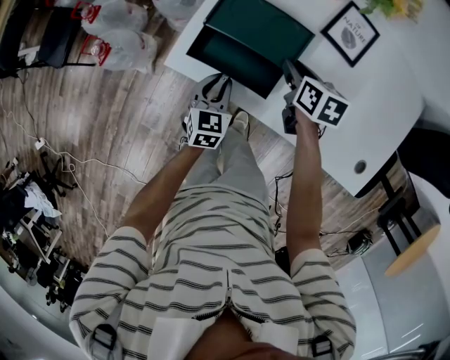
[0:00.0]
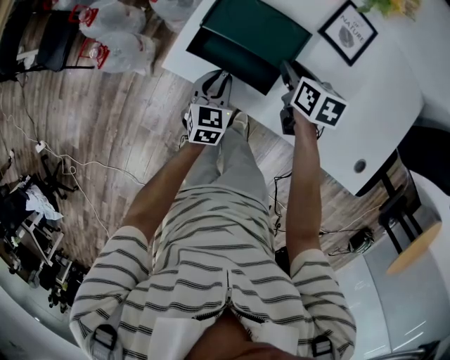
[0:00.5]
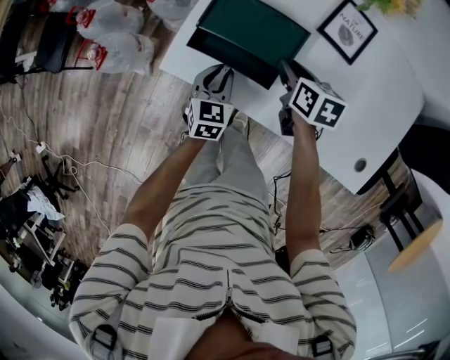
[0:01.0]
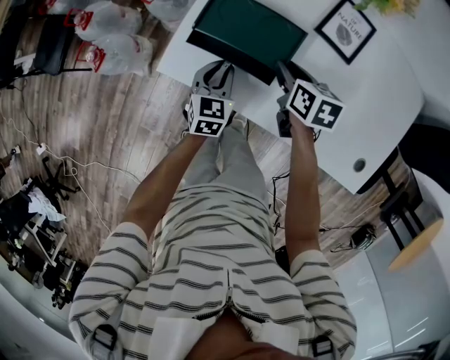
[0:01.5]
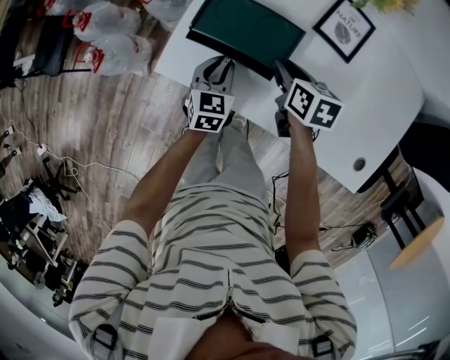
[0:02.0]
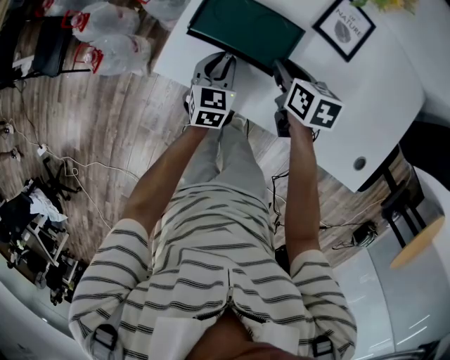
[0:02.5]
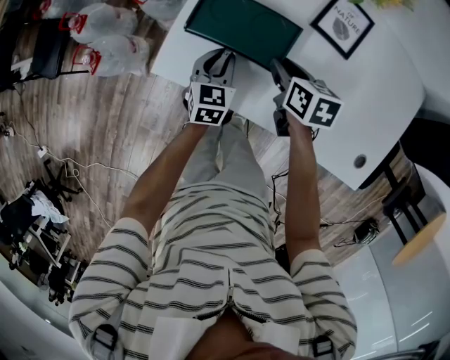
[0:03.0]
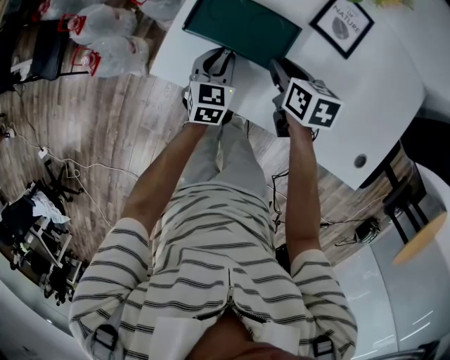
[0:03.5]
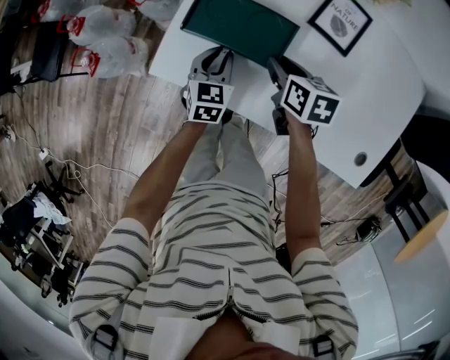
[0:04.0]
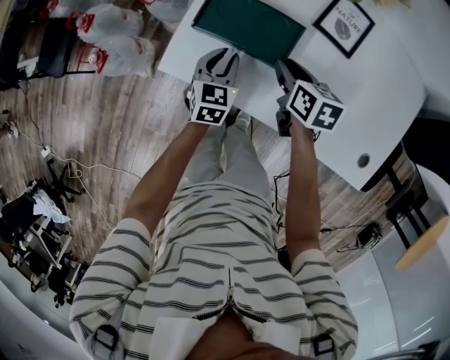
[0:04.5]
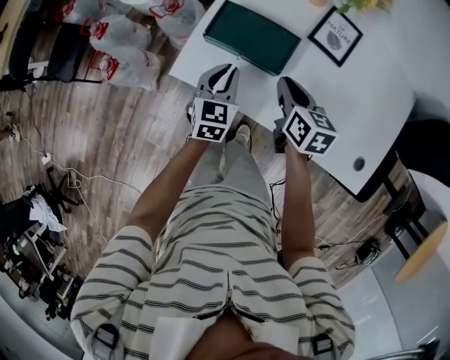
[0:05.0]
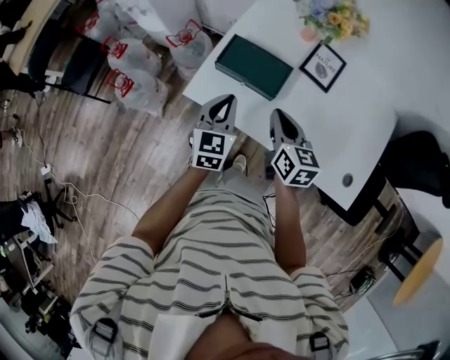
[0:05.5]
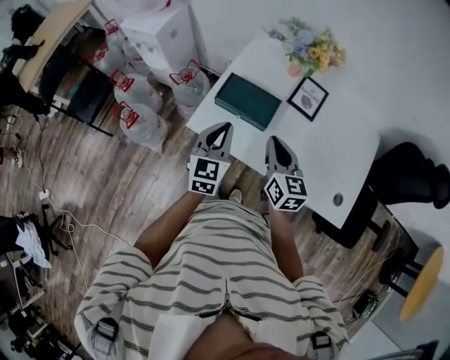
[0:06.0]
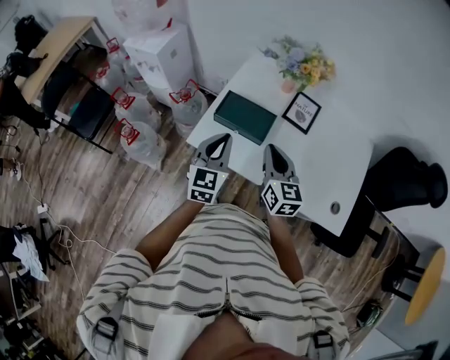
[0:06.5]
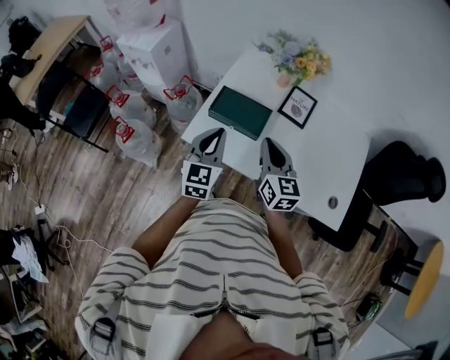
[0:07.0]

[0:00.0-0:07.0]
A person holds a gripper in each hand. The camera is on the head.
0:00.0 to 0:02.0: The left gripper goes roughly 5 cm forward.
0:02.0 to 0:03.5: The grippers make only small movements.
0:03.5 to 0:05.0: The left gripper shifts approximately 10 cm upward. The right gripper is displaced upward and backward by some 10 cm, and closes its fingers.
0:05.0 to 0:07.0: The left gripper moves upward, about 20 cm, and turns by roughly 20 degrees, while the right gripper heads upward and backward, covering approximately 20 cm, and rotates roughly 30 degrees.

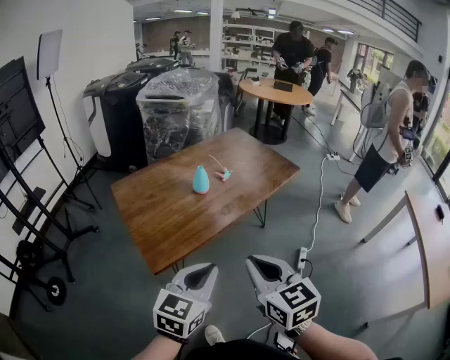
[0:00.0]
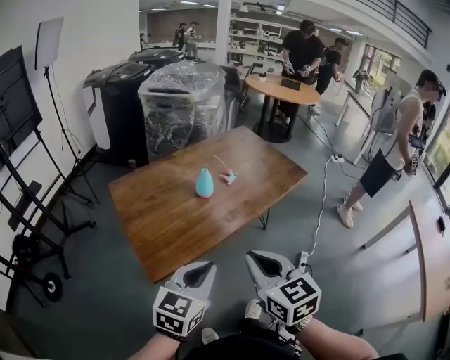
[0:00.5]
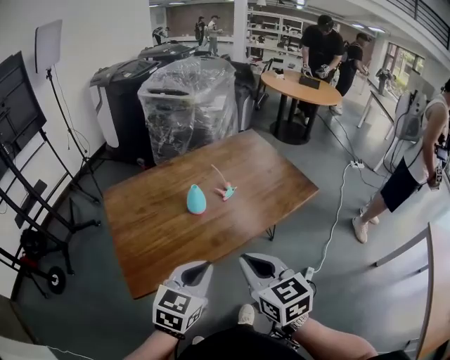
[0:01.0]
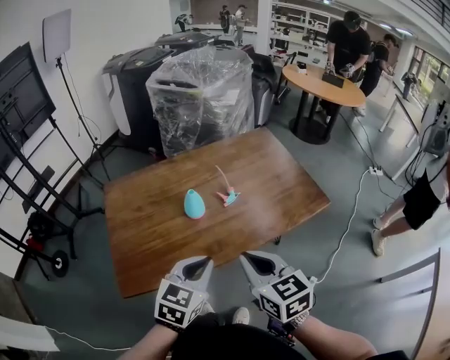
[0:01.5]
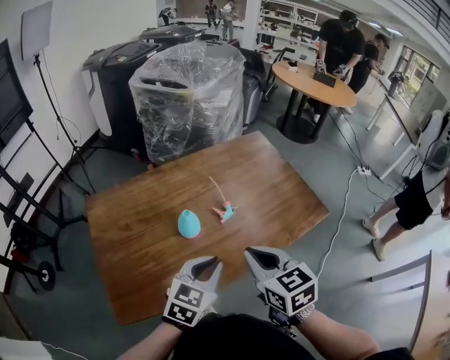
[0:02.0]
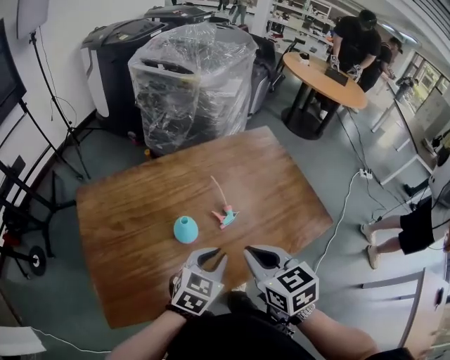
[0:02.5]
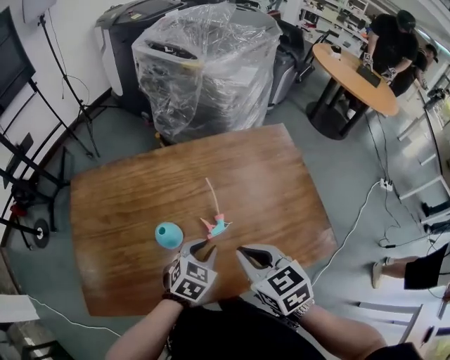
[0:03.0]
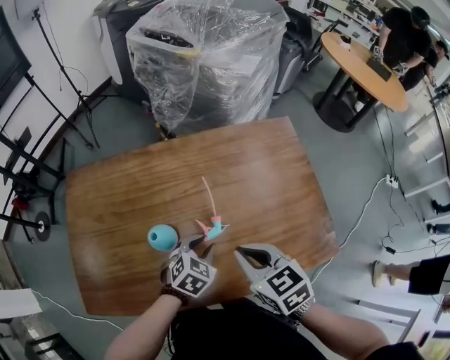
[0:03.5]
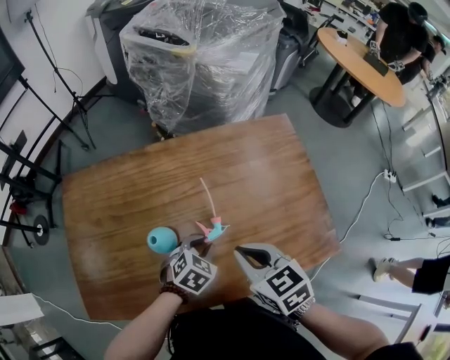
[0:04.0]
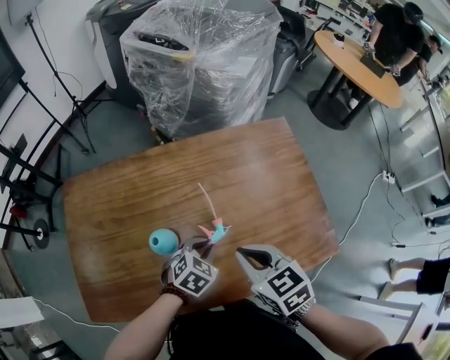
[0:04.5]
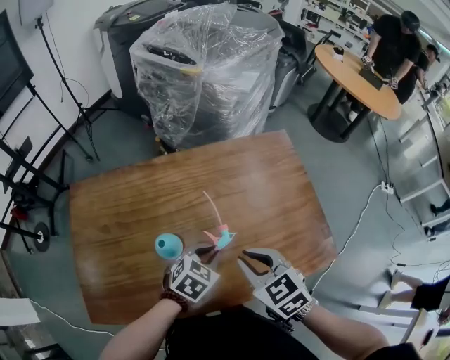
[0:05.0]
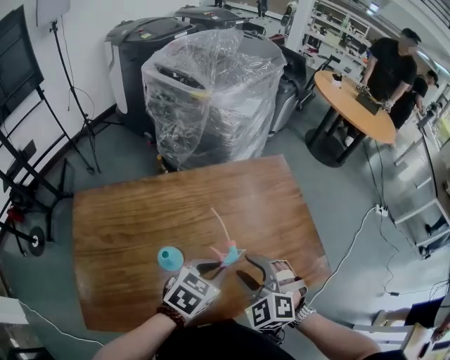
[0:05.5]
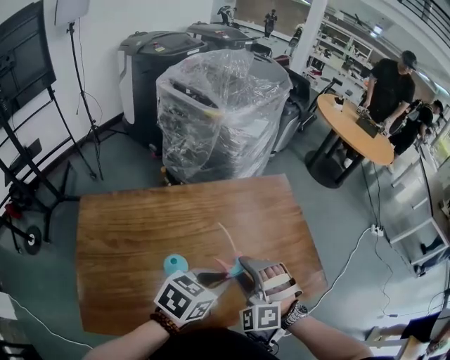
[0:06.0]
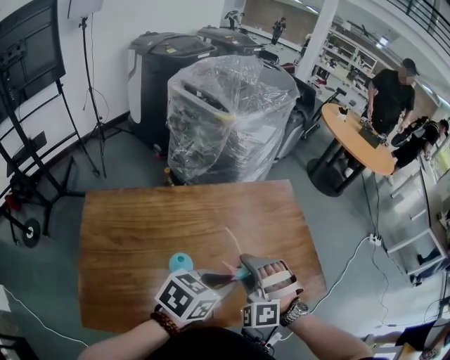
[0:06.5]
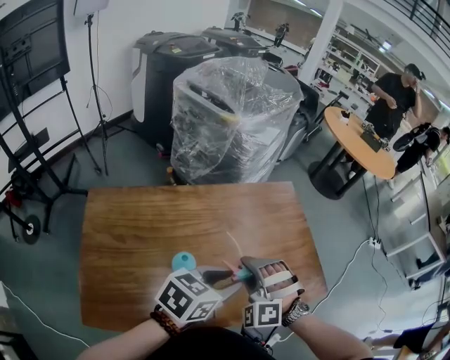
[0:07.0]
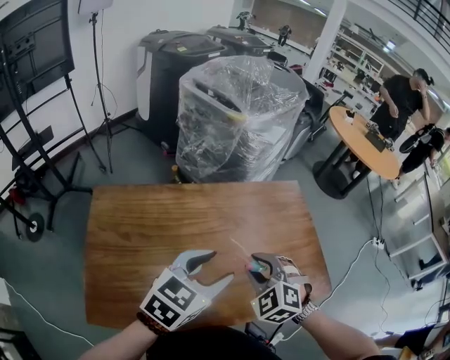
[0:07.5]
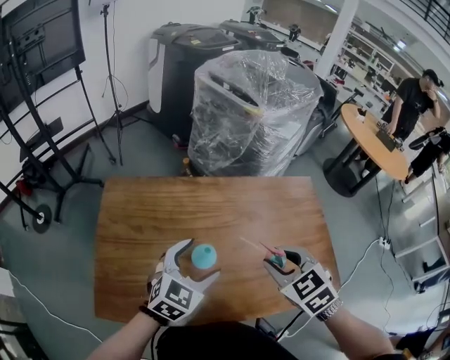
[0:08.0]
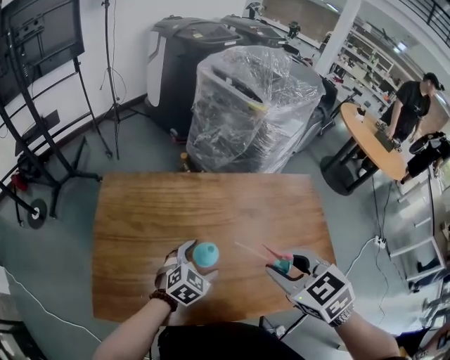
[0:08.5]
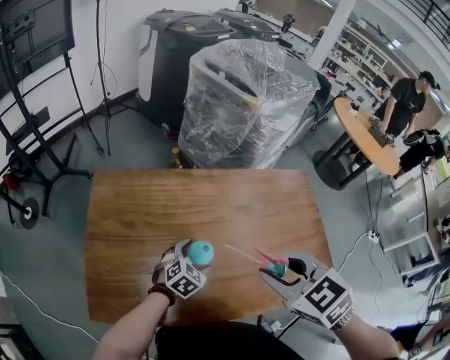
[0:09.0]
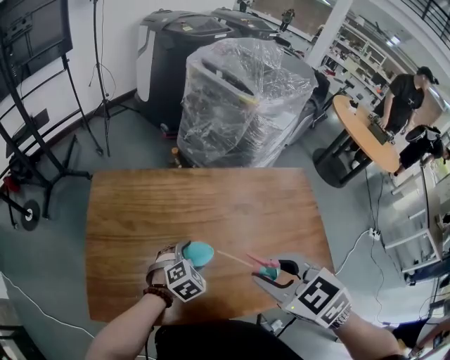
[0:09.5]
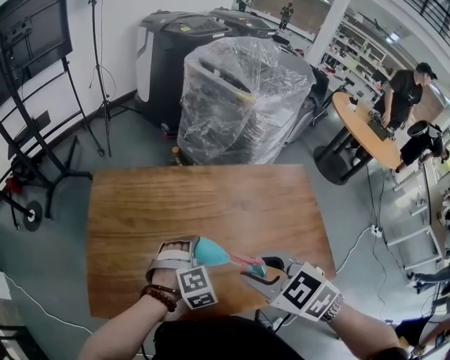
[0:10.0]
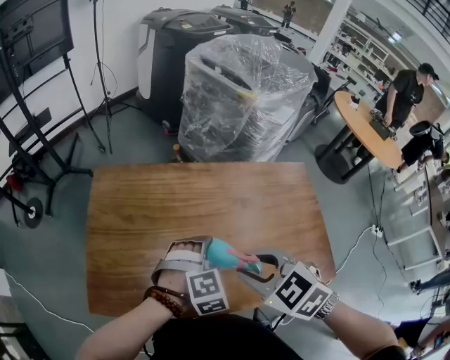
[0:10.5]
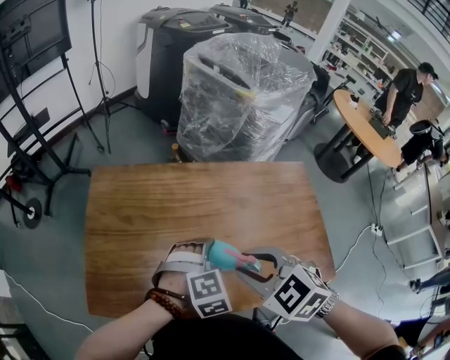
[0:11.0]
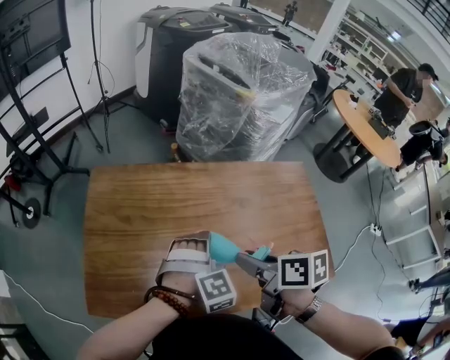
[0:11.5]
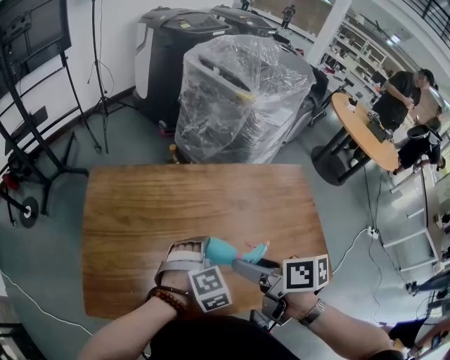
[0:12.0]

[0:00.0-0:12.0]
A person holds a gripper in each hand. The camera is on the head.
0:00.0 to 0:02.0: Both grippers travel together forward, some 35 cm.
0:02.0 to 0:04.0: The left gripper heads downward and forward, covering approximately 25 cm, and rotates approximately 30 degrees. Meanwhile the right gripper is displaced forward and downward by roughly 15 cm, and changes its angle by about 20 degrees.
0:04.0 to 0:06.0: The left gripper travels upward by some 20 cm, and changes its angle by some 30 degrees, while the right gripper rotates around the line of its fingers by roughly 70 degrees, counterclockwise from behind, and opens up.
0:06.0 to 0:08.0: The left gripper reaches some 5 cm upward, then returns, turns by roughly 30 degrees, and opens up; the right gripper is displaced upward by about 5 cm, and rotates around the line of its fingers by approximately 40 degrees, clockwise from behind.
0:08.0 to 0:10.0: The left gripper shifts some 10 cm downward, and swivels about 50 degrees; the right gripper heads to the left, covering some 5 cm.
0:10.0 to 0:12.0: The right gripper ends up about 5 cm from where it was, rolls clockwise, seen from behind, by roughly 70 degrees, and opens its fingers.

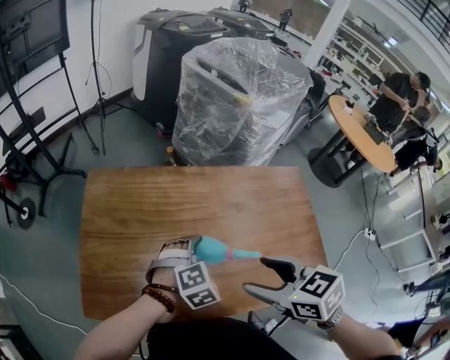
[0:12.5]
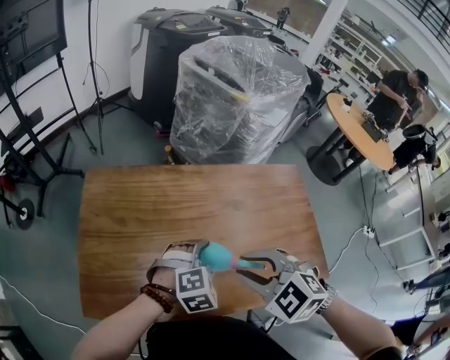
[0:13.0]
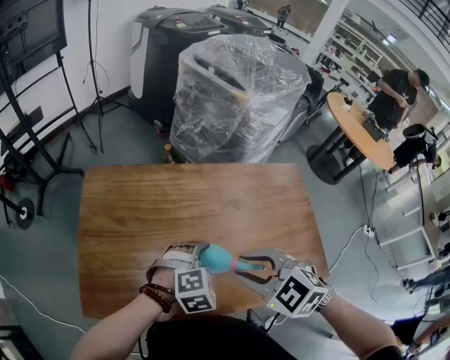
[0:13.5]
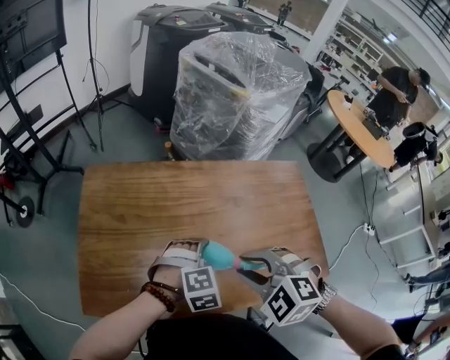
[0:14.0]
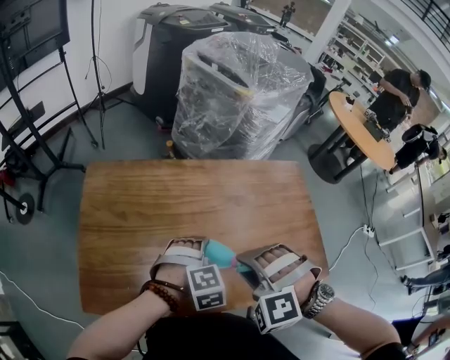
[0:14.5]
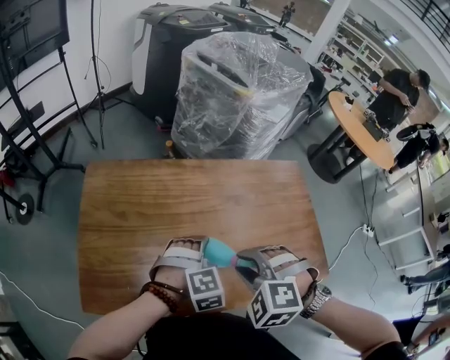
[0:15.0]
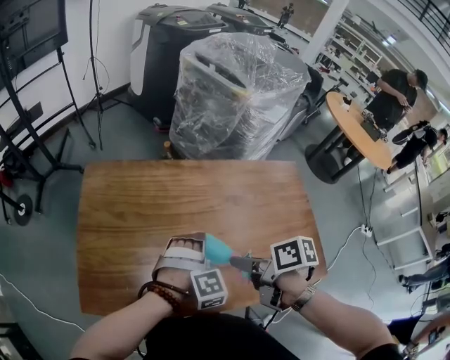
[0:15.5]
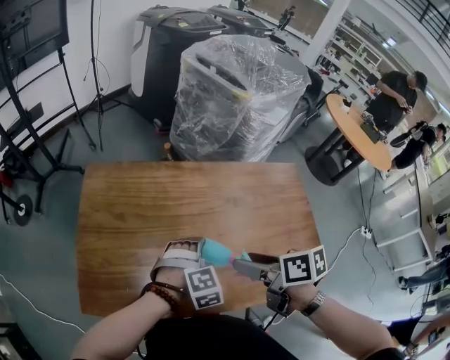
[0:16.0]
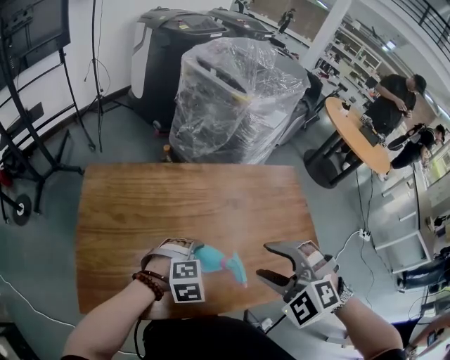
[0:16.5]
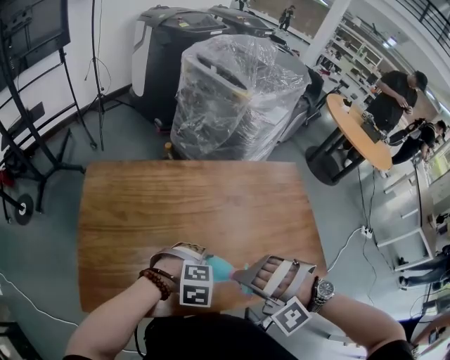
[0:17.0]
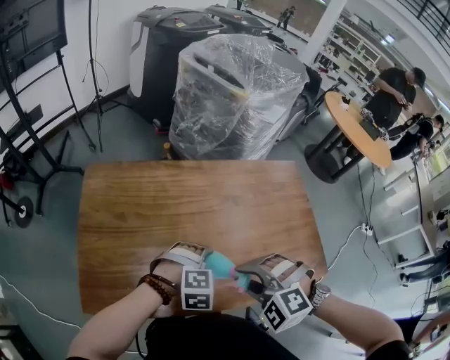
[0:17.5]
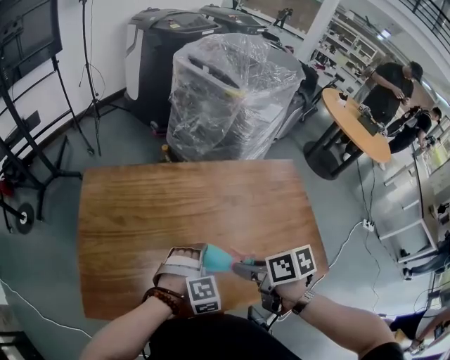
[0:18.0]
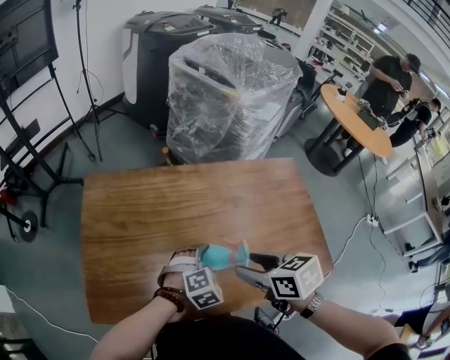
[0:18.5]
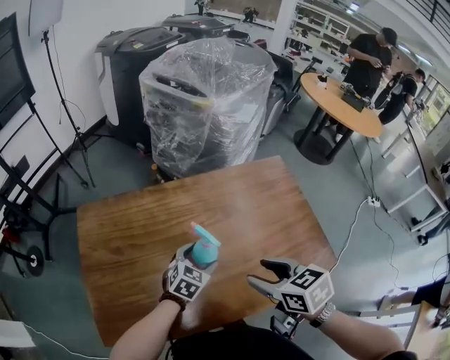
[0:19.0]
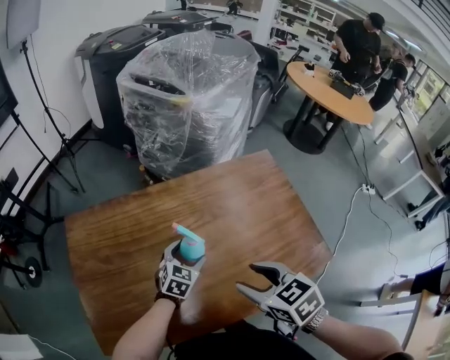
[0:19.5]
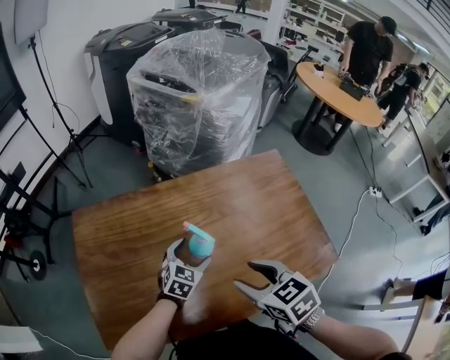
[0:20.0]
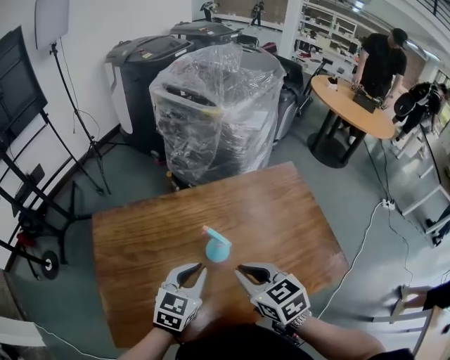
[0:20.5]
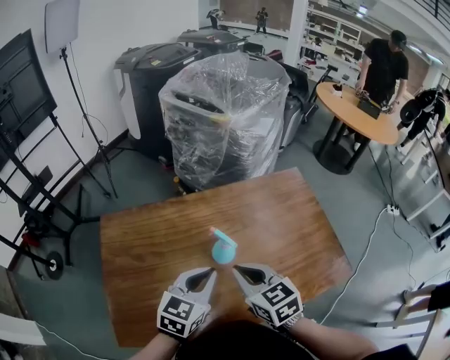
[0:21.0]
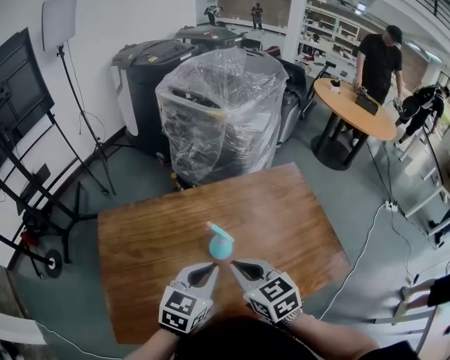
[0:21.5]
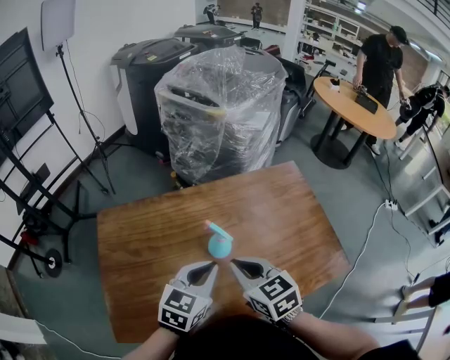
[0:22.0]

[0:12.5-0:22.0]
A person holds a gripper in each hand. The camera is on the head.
0:12.5 to 0:14.5: The right gripper moves approximately 5 cm, rolls counterclockwise, seen from behind, by about 80 degrees, and closes its fingers.
0:14.5 to 0:16.5: The right gripper heads upward, covering about 5 cm, swivels some 20 degrees, and opens.
0:16.5 to 0:18.0: The right gripper goes some 10 cm downward, rolls clockwise, seen from behind, by some 100 degrees, and closes up.
0:18.0 to 0:20.0: The left gripper is displaced forward by approximately 10 cm, and rotates around the line of its fingers by roughly 50 degrees, counterclockwise from behind, while the right gripper changes its angle by some 40 degrees.
0:20.0 to 0:22.0: The right gripper heads to the left, covering some 5 cm, and closes, while the left gripper moves upward and backward, some 20 cm, and closes its fingers.
